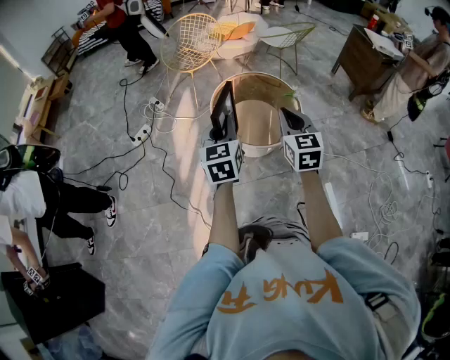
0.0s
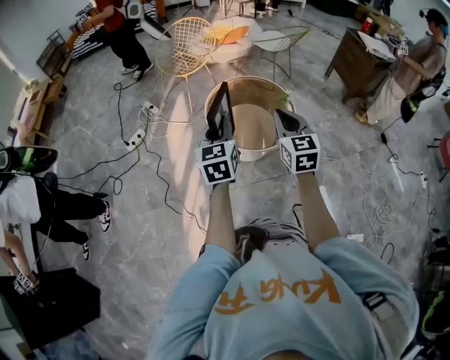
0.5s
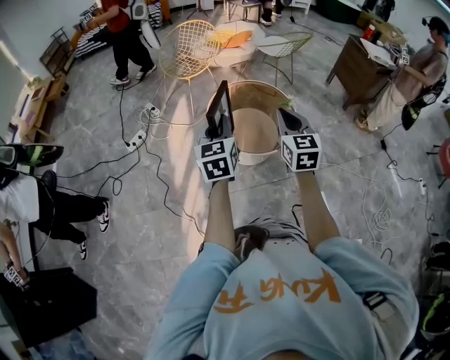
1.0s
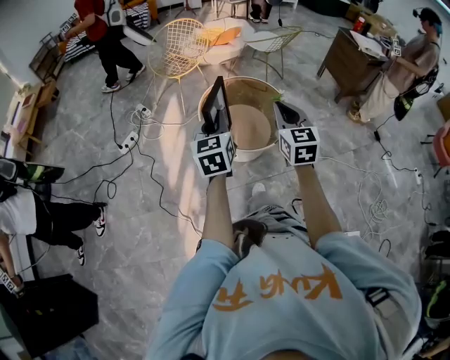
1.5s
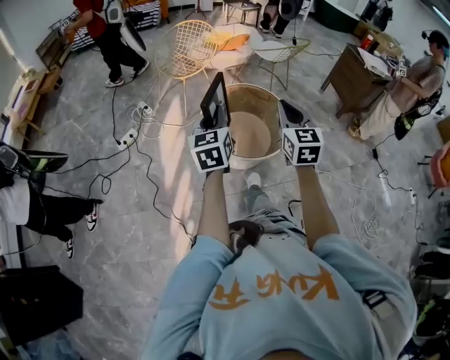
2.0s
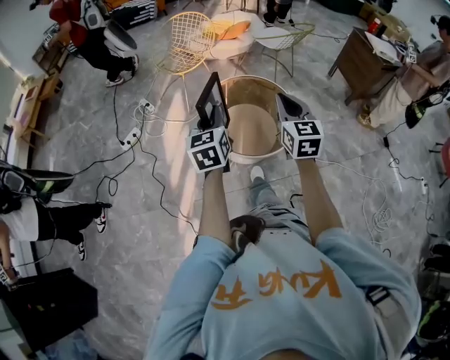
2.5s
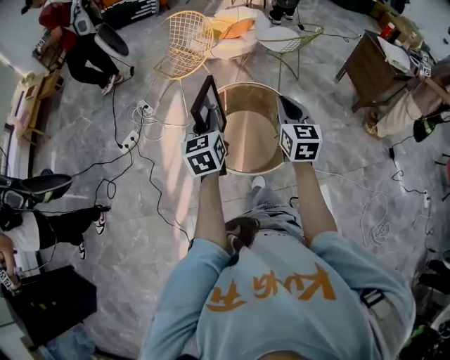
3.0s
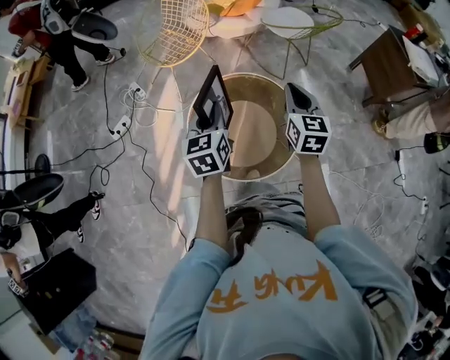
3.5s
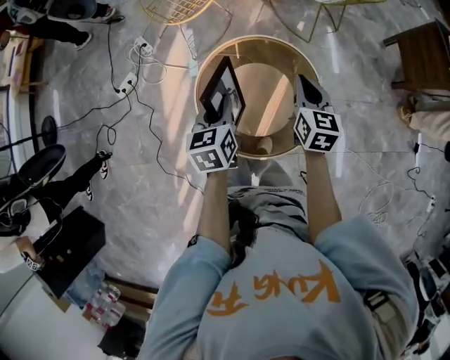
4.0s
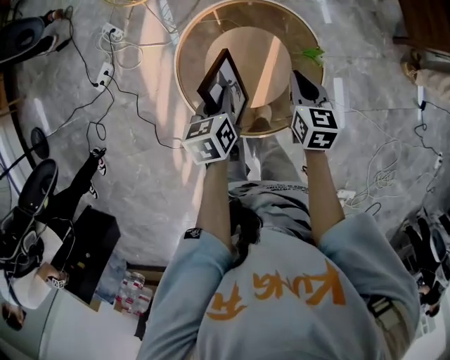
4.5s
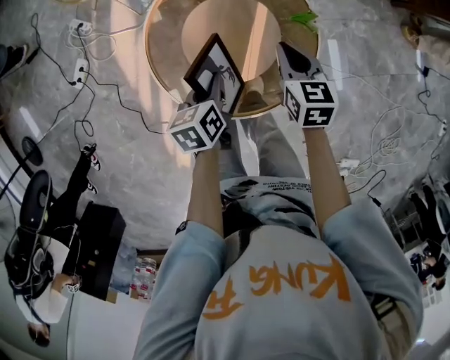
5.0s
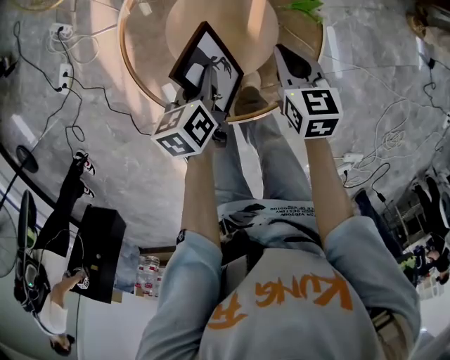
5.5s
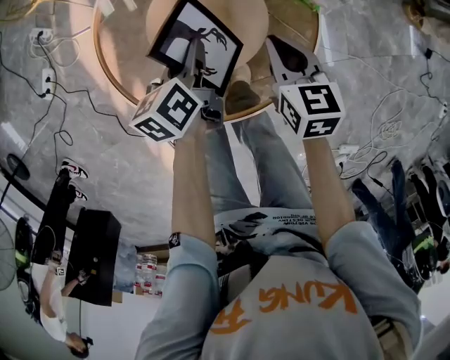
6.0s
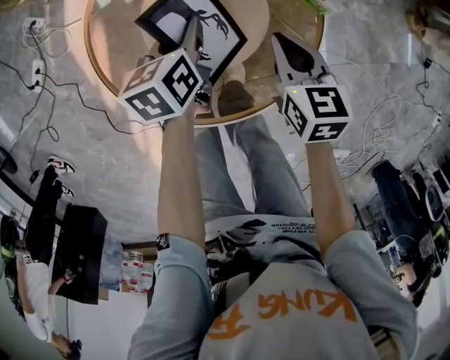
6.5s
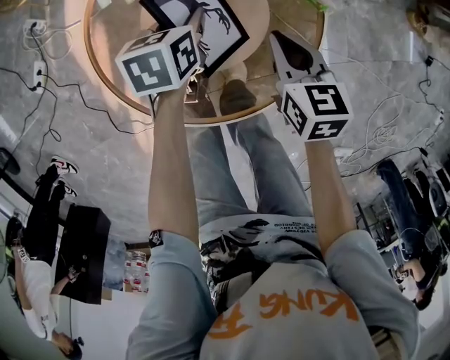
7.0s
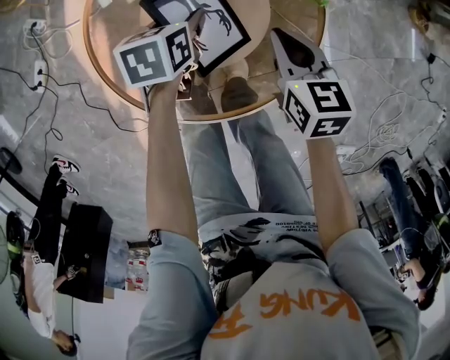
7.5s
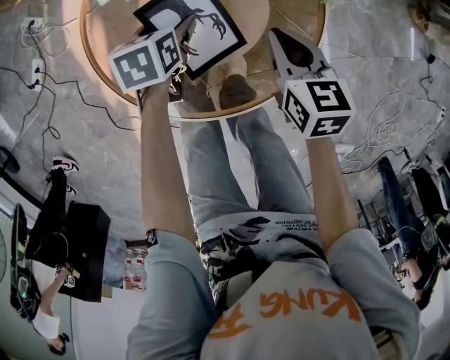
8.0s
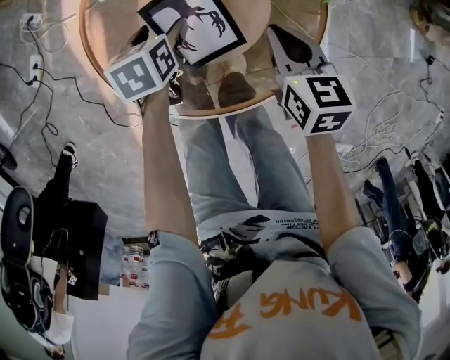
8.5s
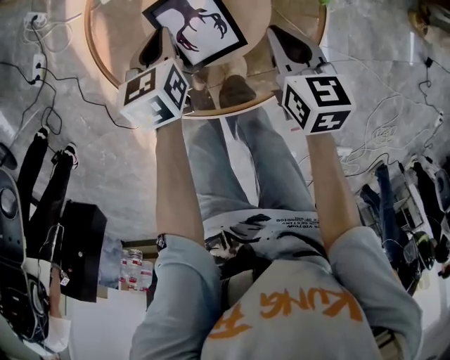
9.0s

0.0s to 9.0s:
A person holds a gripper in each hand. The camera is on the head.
0.0s to 2.0s: Both grippers move forward, roughly 5 cm.
2.0s to 4.5s: Both grippers are carried forward and to the right, approximately 40 cm. Both grippers move downward, some 35 cm. The right gripper points its fingers some 30 degrees further downward. Meanwhile the left gripper tilts its fingers about 40 degrees downward.
4.5s to 7.0s: Both grippers move downward, some 20 cm.
7.0s to 9.0s: The left gripper travels to the left and backward by roughly 10 cm, and opens, then closes once more.

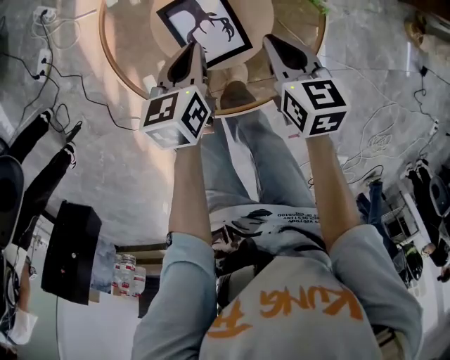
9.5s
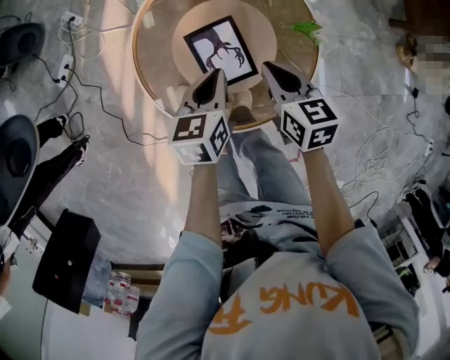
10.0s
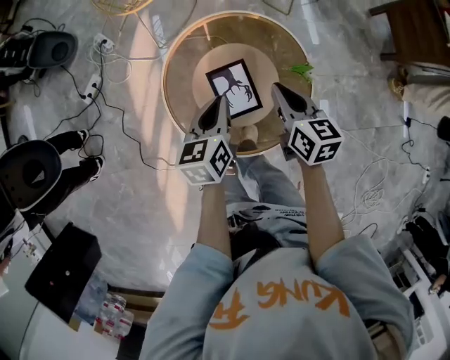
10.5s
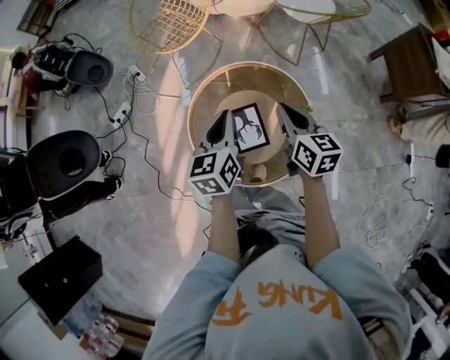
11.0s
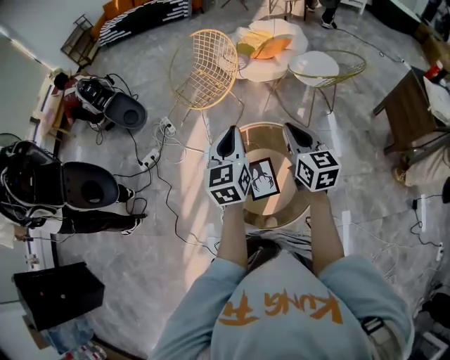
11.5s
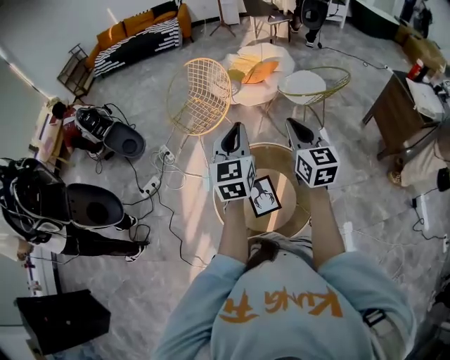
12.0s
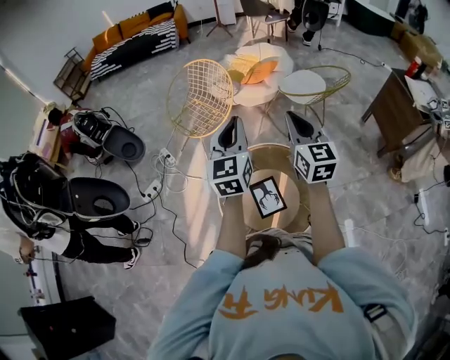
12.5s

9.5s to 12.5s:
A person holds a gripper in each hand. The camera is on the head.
9.5s to 11.0s: The two grippers go roughly 35 cm upward. The left gripper swivels about 20 degrees, while the right gripper swivels roughly 20 degrees.
11.0s to 12.5s: Both grippers move upward, some 25 cm. The left gripper changes its angle by about 30 degrees; the right gripper swivels about 30 degrees.

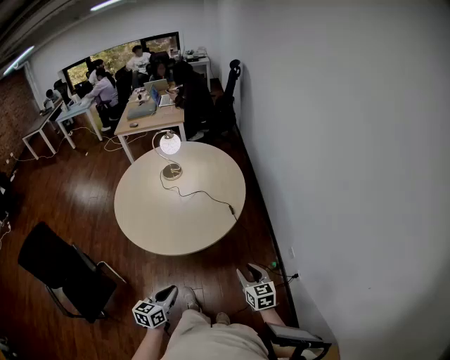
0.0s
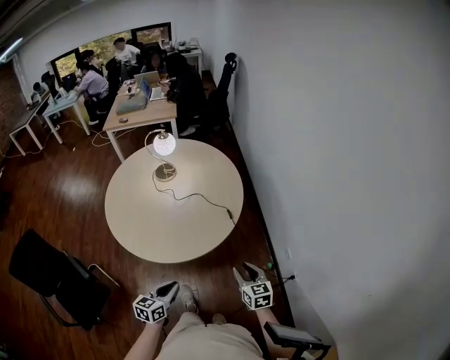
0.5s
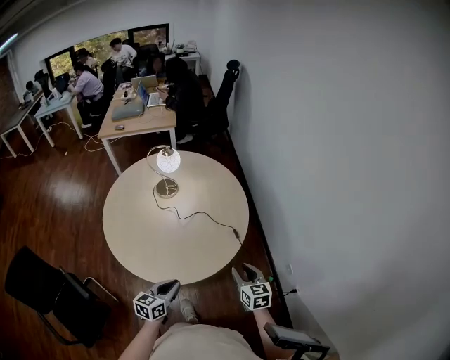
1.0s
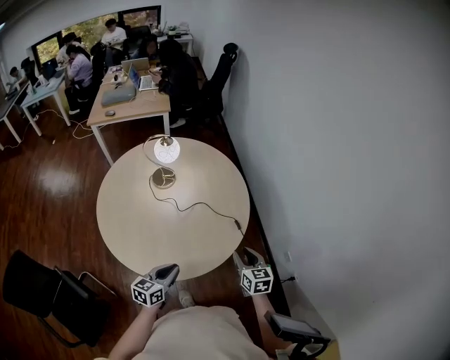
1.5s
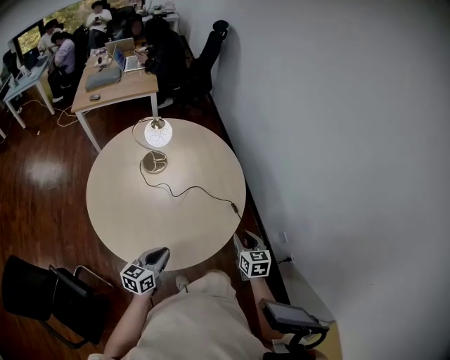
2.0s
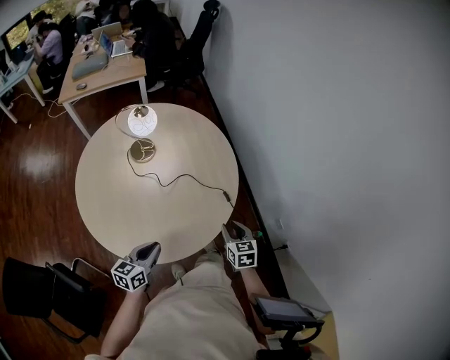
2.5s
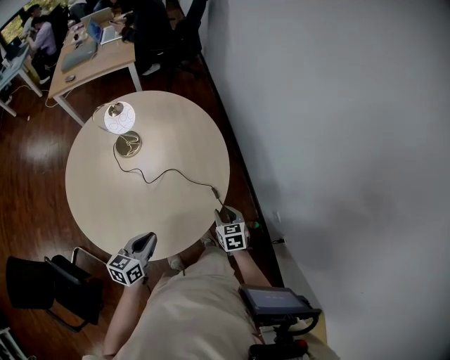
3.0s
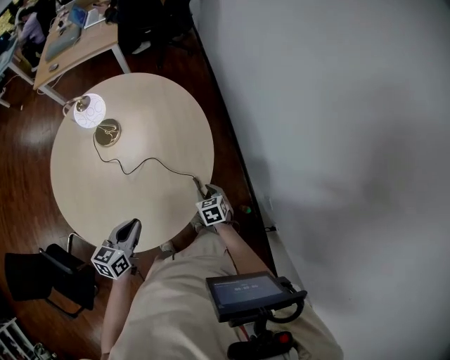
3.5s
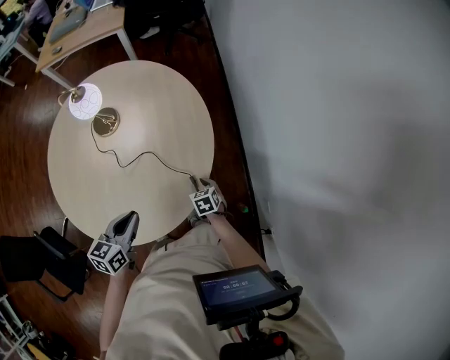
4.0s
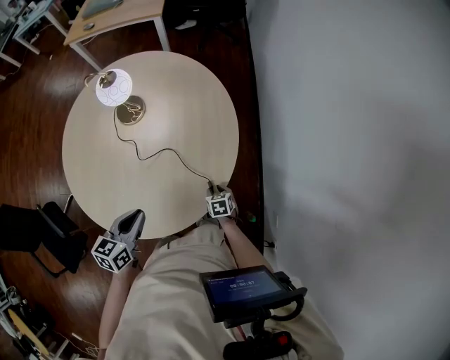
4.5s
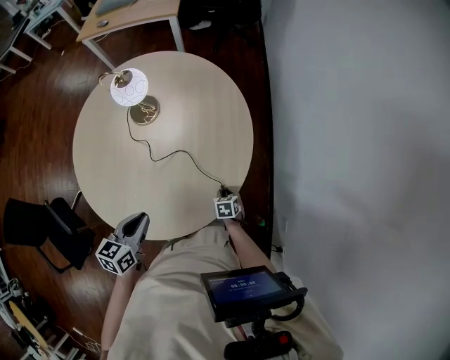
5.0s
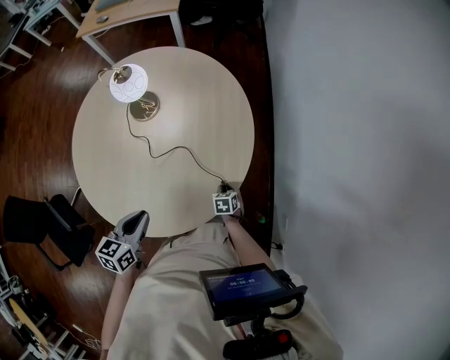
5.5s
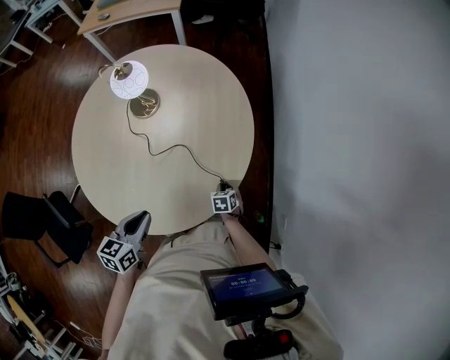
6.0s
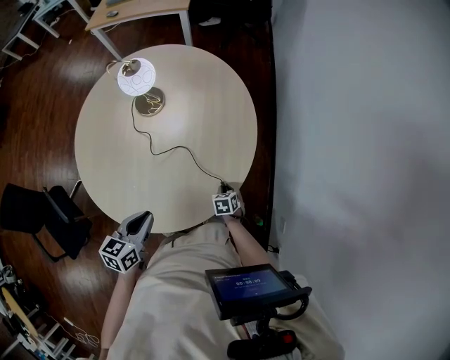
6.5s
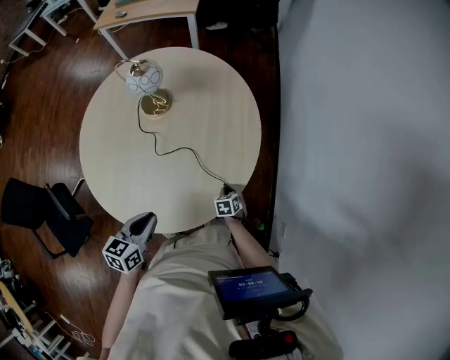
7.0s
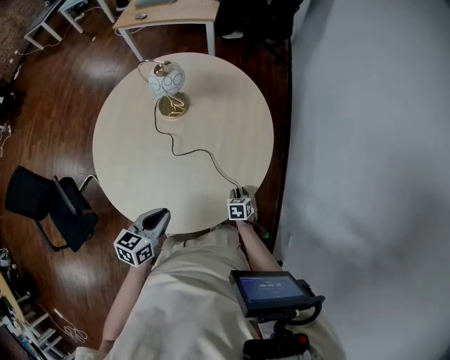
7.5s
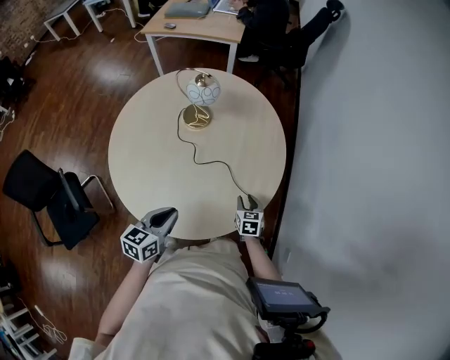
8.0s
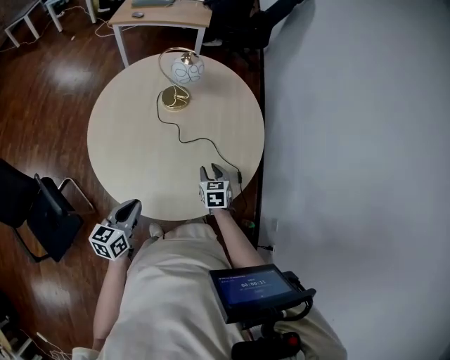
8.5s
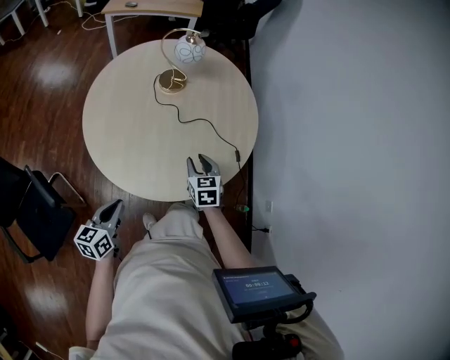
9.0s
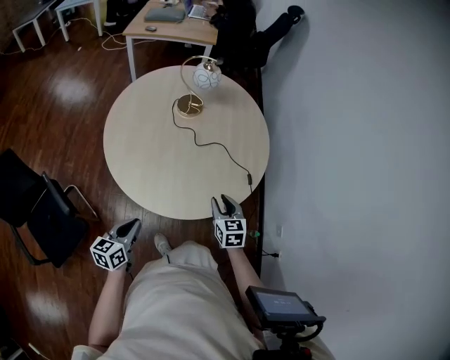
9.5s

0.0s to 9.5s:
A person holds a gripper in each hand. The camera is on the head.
0.0s to 2.0s: The two grippers go some 30 cm forward and to the left.
2.0s to 4.0s: The left gripper moves forward and to the right, some 20 cm; the right gripper is displaced downward and forward by about 30 cm, and changes its angle by some 30 degrees.
4.0s to 5.5s: The left gripper shifts about 5 cm to the left. Meanwhile the right gripper heads downward, covering approximately 10 cm.
5.5s to 7.5s: There are only small adjustments of the grippers.
7.5s to 9.5s: The right gripper shifts approximately 35 cm upward, to the left and backward, and turns by some 30 degrees. The left gripper heads to the left and backward, covering some 35 cm.

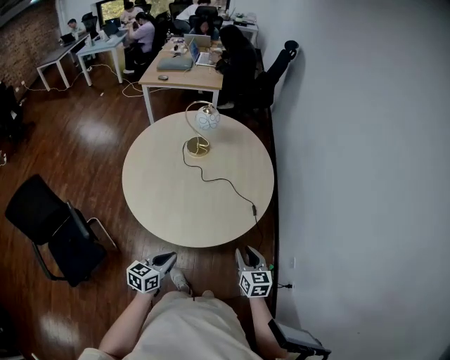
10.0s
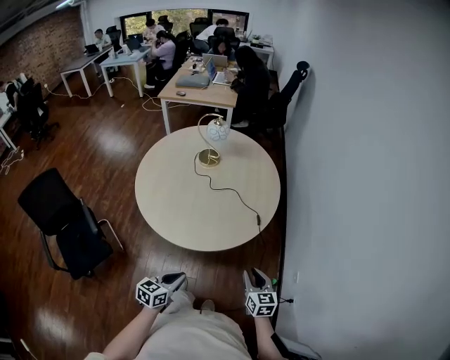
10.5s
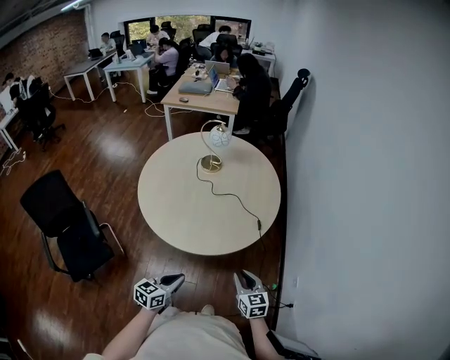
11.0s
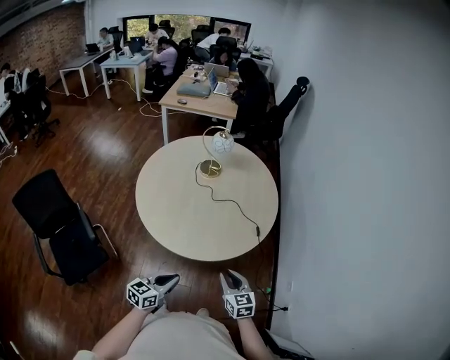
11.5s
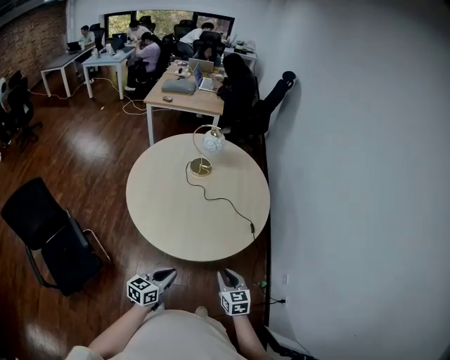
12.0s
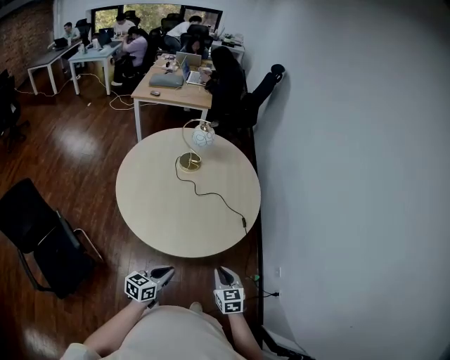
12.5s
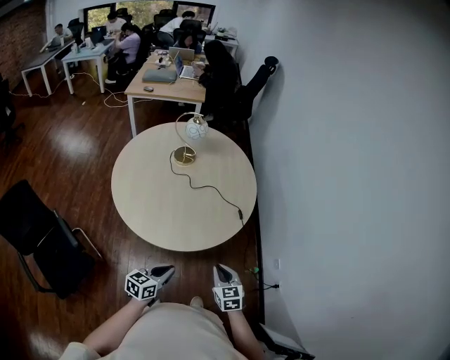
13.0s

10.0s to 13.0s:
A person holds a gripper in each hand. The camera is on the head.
10.0s to 11.5s: The right gripper shifts some 10 cm backward and to the left. The left gripper travels backward by roughly 5 cm.
11.5s to 13.0s: There are only small adjustments of the grippers.

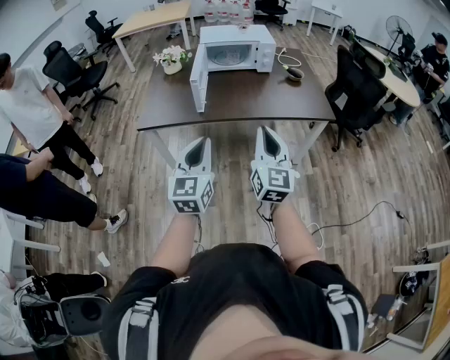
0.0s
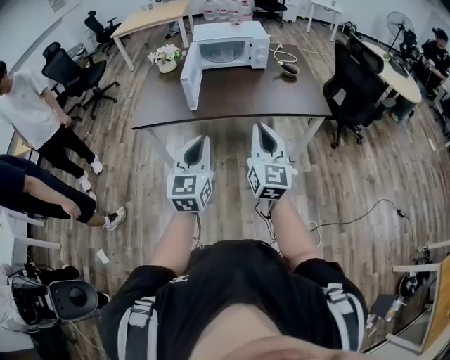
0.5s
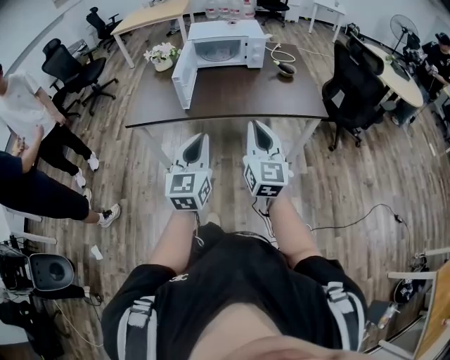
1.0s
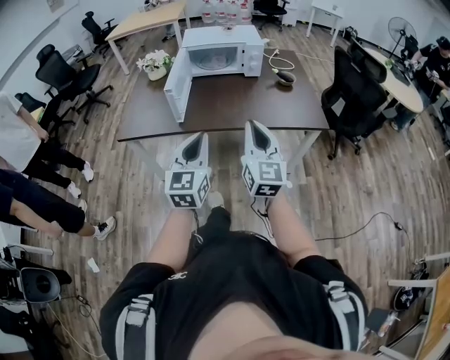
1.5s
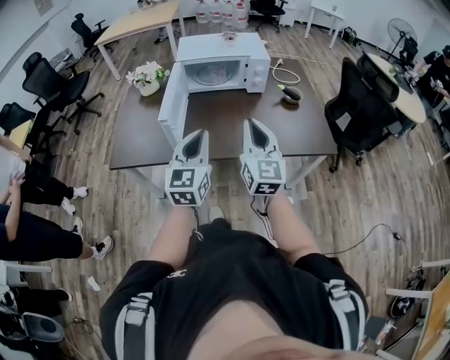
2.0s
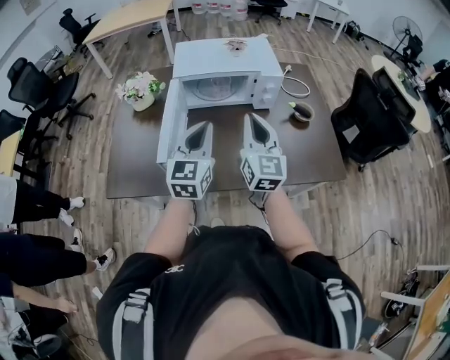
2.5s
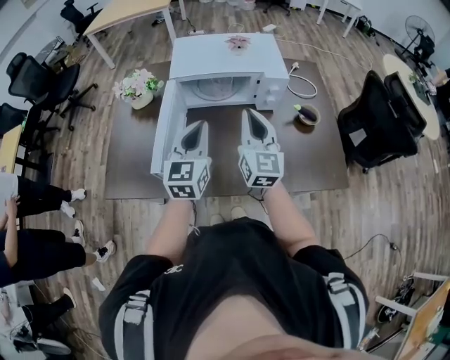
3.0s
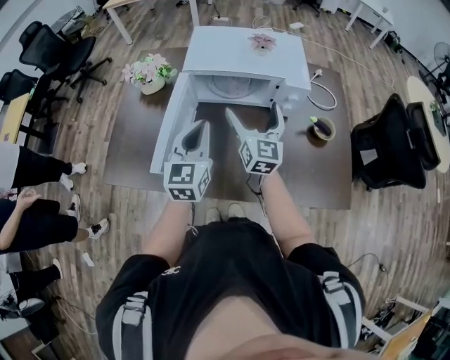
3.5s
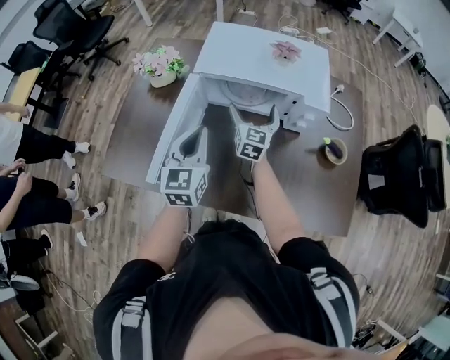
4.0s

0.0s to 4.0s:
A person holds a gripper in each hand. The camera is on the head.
0.0s to 2.0s: The grippers both shift forward by about 30 cm.
2.0s to 4.0s: The two grippers go some 40 cm forward. The right gripper opens.
